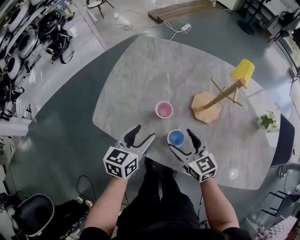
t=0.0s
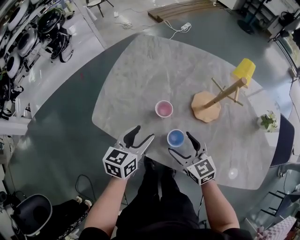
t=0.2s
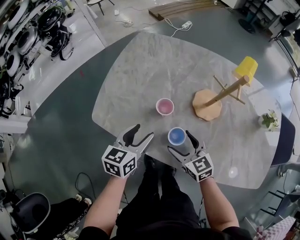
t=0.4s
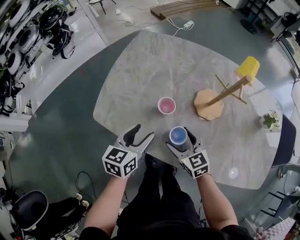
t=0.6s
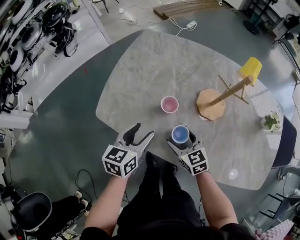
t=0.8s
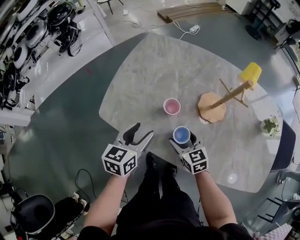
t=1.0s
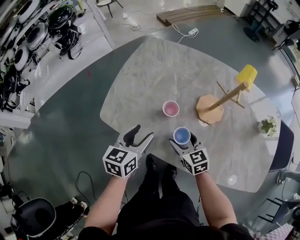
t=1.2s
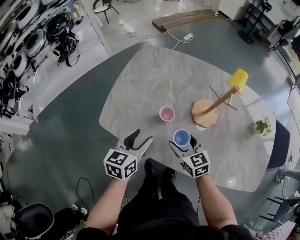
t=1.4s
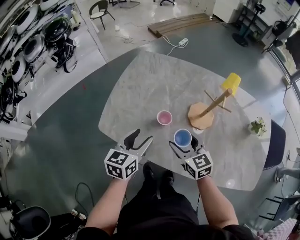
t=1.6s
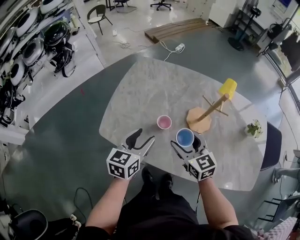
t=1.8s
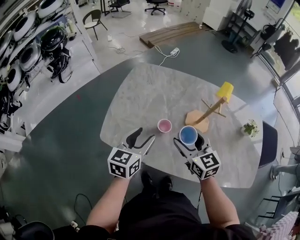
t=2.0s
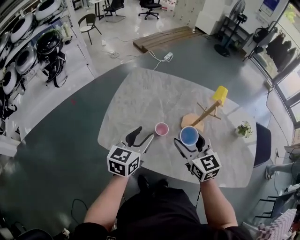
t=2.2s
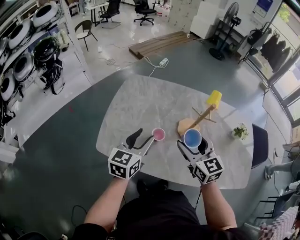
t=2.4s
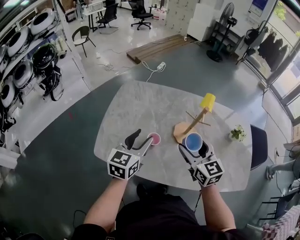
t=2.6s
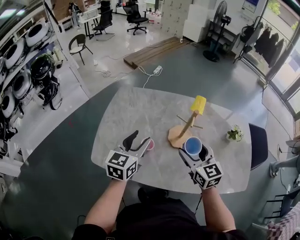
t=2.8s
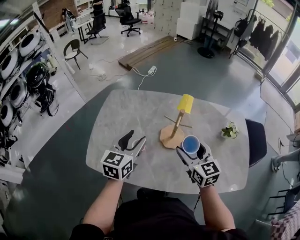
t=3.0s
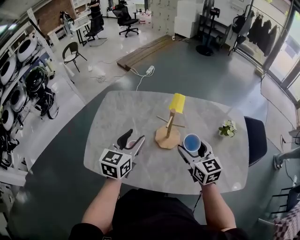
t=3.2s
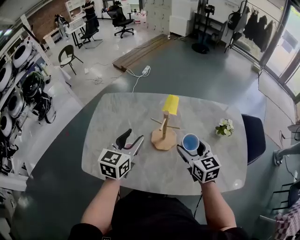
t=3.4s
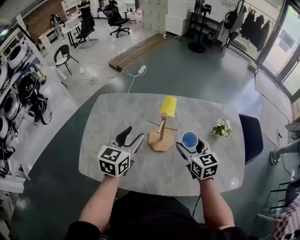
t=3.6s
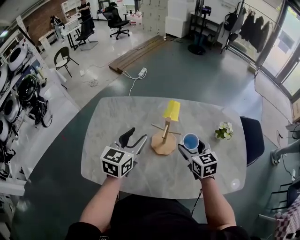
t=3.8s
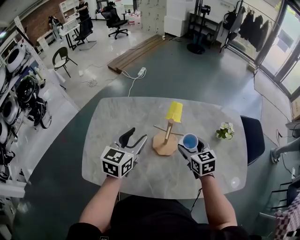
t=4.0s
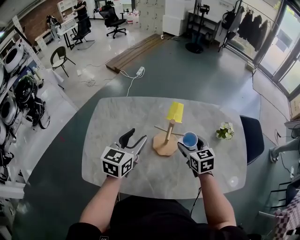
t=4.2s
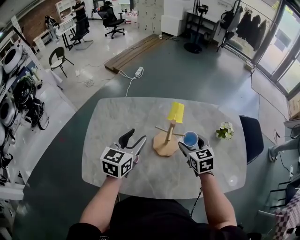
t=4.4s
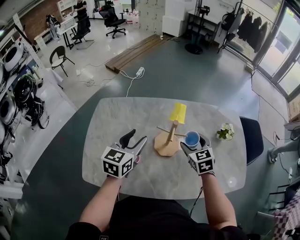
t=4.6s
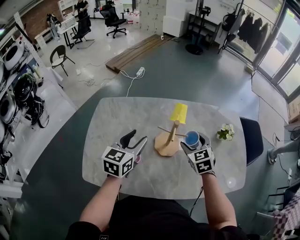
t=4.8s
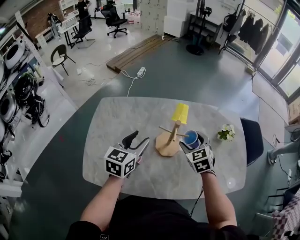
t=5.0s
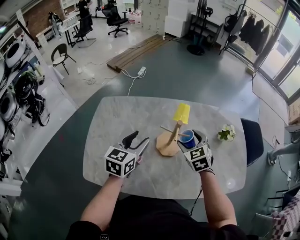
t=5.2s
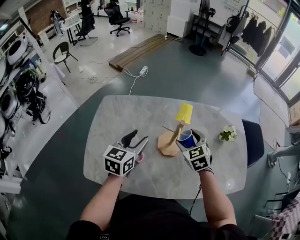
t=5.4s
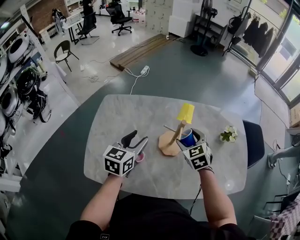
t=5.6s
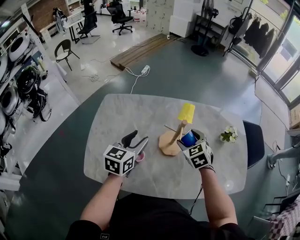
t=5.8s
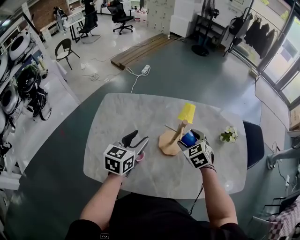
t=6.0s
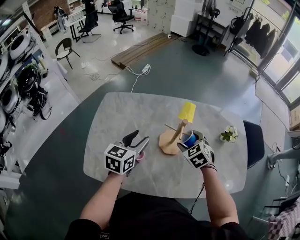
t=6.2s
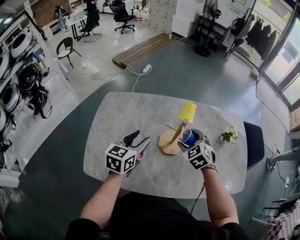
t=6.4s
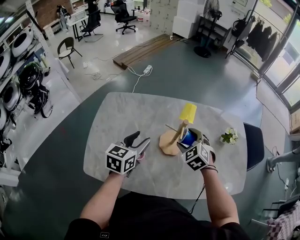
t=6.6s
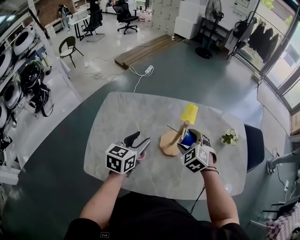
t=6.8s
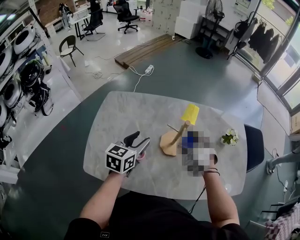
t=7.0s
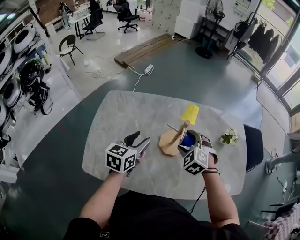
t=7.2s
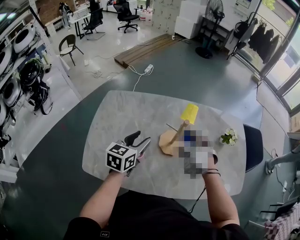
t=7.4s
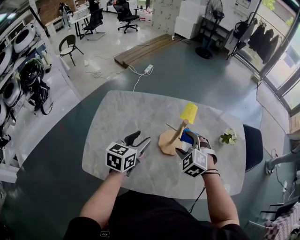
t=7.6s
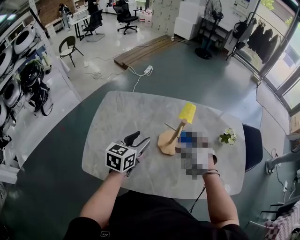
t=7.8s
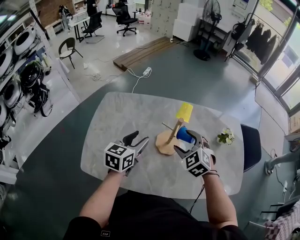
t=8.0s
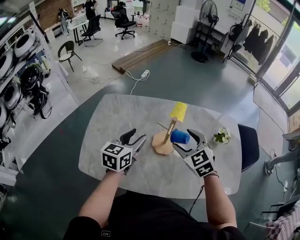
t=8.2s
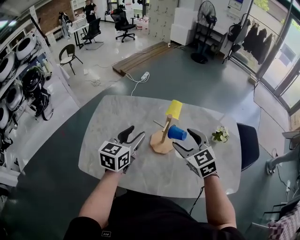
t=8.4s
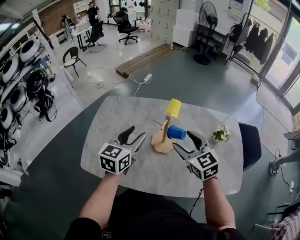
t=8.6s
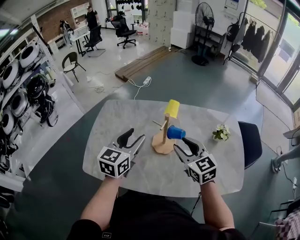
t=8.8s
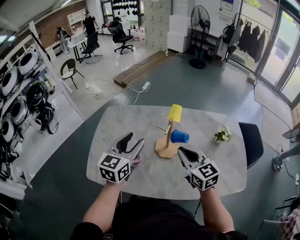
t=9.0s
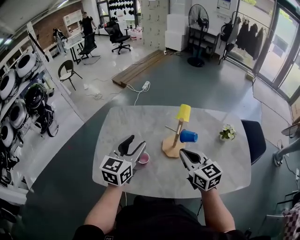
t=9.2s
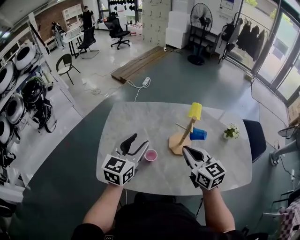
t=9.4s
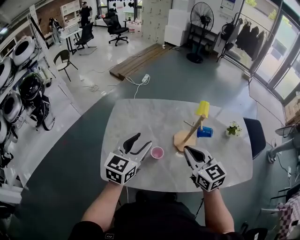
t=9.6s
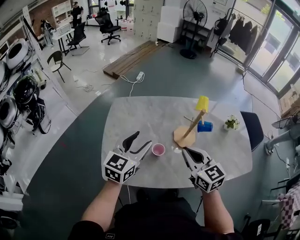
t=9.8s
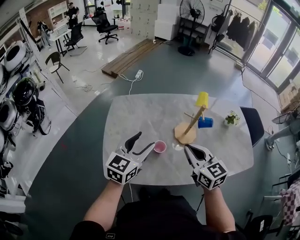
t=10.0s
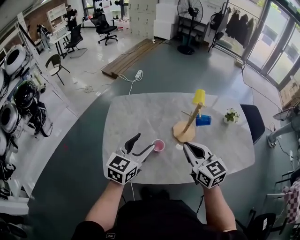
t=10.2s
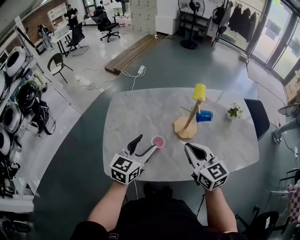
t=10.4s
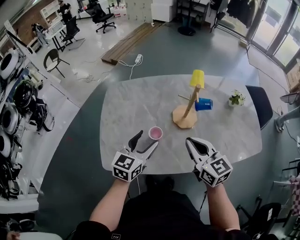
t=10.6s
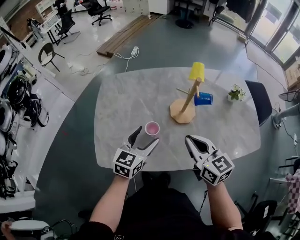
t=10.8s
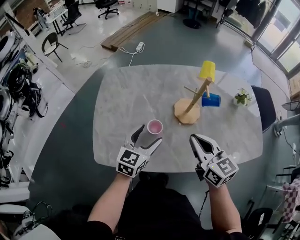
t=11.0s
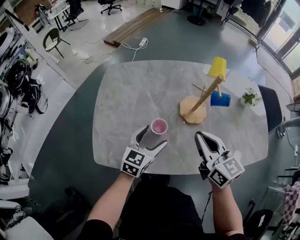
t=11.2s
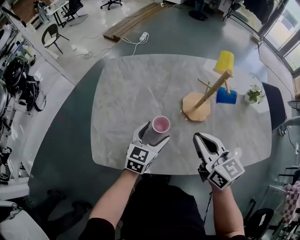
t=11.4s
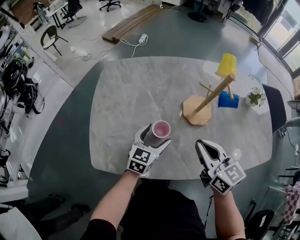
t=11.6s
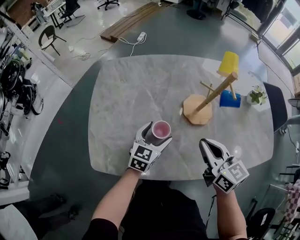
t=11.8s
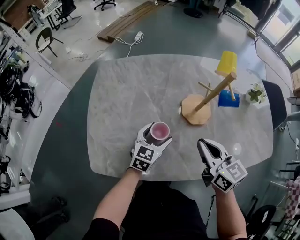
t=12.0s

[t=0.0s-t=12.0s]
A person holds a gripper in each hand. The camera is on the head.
t=0.0s to t=1.6s: The left gripper is displaced upward by some 5 cm, while the right gripper ends up about 5 cm from where it was.
t=1.6s to t=3.0s: The left gripper travels upward, forward and to the right by approximately 15 cm. The right gripper heads to the right and upward, covering roughly 20 cm, and changes its angle by approximately 20 degrees.
t=3.0s to t=4.4s: The right gripper moves forward, downward and to the right, approximately 10 cm, and swivels about 20 degrees; the left gripper moves forward, roughly 5 cm.
t=4.4s to t=6.0s: The right gripper is displaced to the left by approximately 5 cm, and rotates some 30 degrees.
t=6.0s to t=7.6s: The right gripper moves some 5 cm, and turns by about 30 degrees.
t=7.6s to t=9.0s: The right gripper travels upward and backward by approximately 10 cm, points its fingers approximately 30 degrees further upward, and closes, while the left gripper shifts about 10 cm upward.
t=9.0s to t=10.4s: The right gripper goes about 15 cm to the left and backward; the left gripper shifts approximately 10 cm to the left and downward.
t=10.4s to t=12.0s: The left gripper travels downward by roughly 25 cm. The right gripper travels downward by about 15 cm.

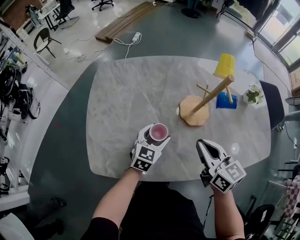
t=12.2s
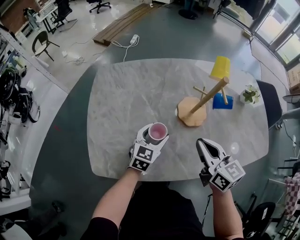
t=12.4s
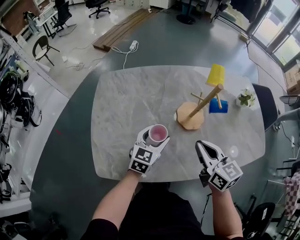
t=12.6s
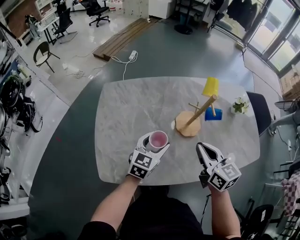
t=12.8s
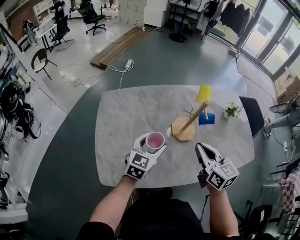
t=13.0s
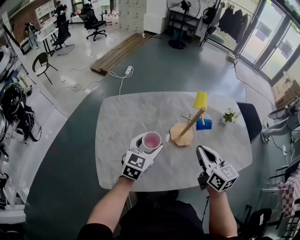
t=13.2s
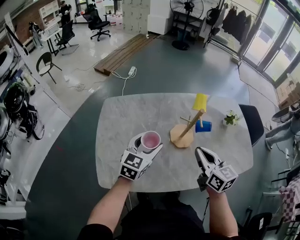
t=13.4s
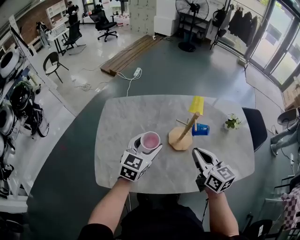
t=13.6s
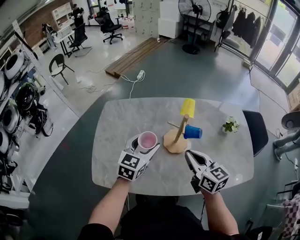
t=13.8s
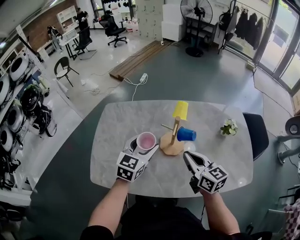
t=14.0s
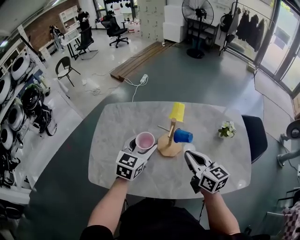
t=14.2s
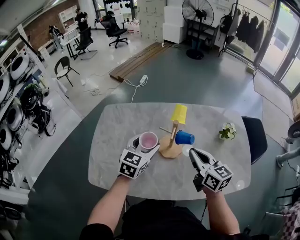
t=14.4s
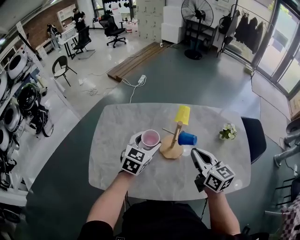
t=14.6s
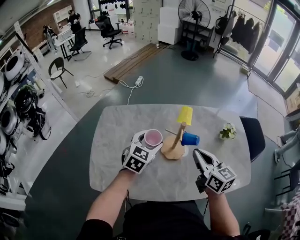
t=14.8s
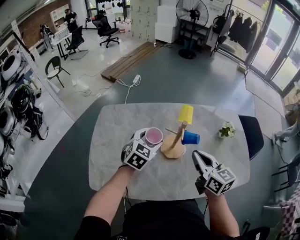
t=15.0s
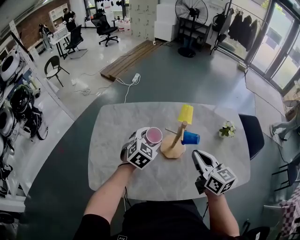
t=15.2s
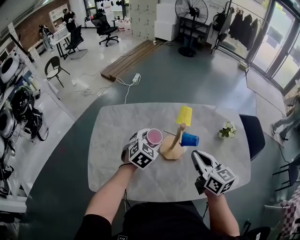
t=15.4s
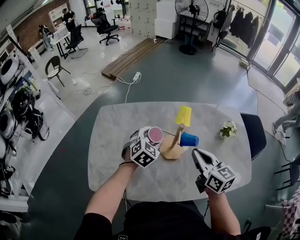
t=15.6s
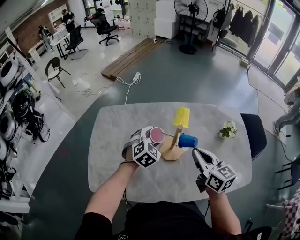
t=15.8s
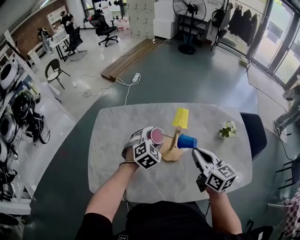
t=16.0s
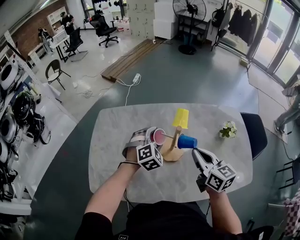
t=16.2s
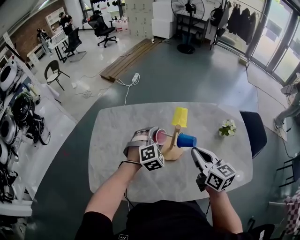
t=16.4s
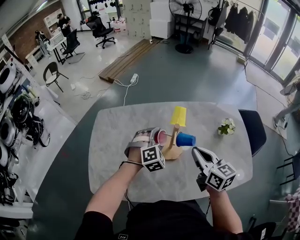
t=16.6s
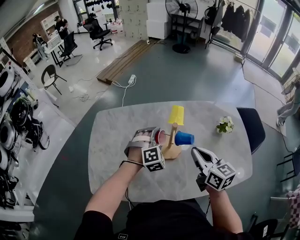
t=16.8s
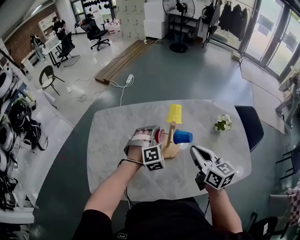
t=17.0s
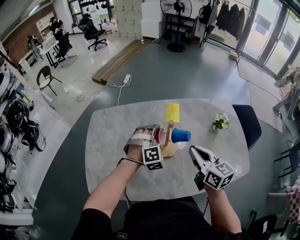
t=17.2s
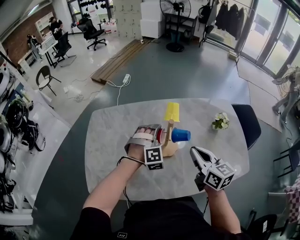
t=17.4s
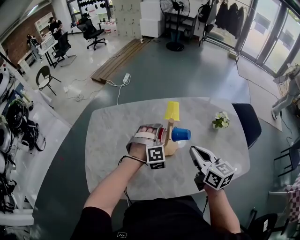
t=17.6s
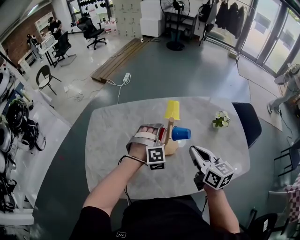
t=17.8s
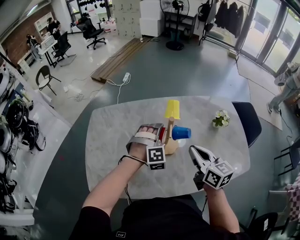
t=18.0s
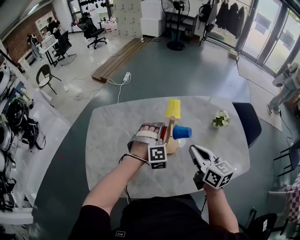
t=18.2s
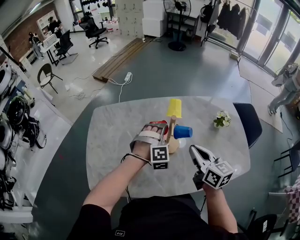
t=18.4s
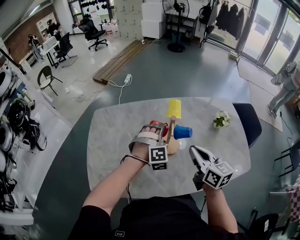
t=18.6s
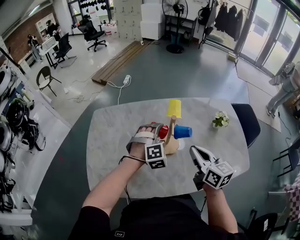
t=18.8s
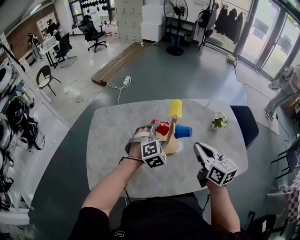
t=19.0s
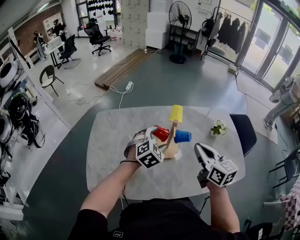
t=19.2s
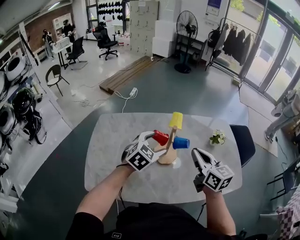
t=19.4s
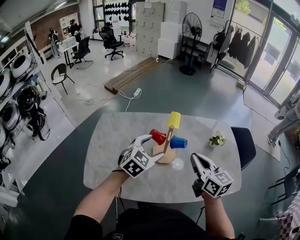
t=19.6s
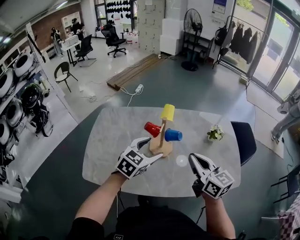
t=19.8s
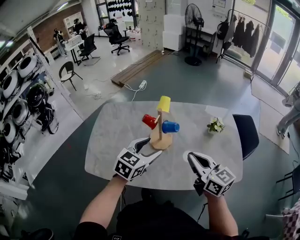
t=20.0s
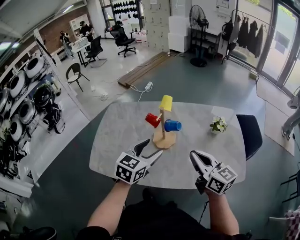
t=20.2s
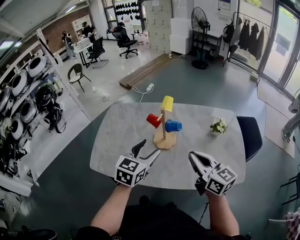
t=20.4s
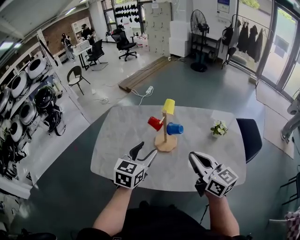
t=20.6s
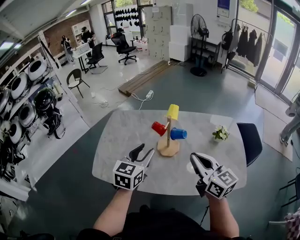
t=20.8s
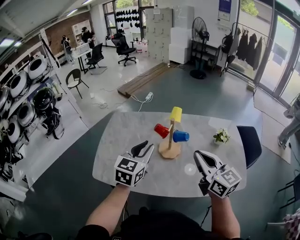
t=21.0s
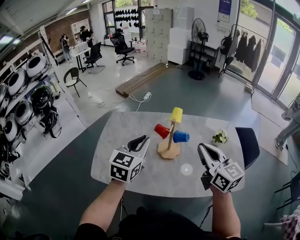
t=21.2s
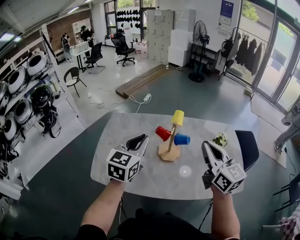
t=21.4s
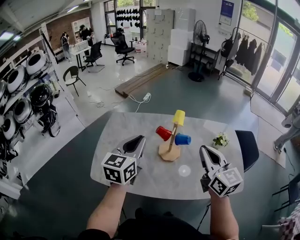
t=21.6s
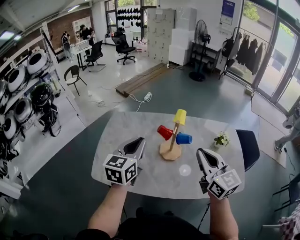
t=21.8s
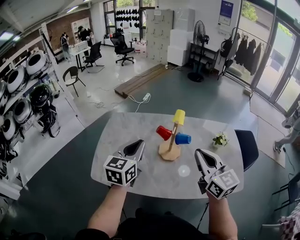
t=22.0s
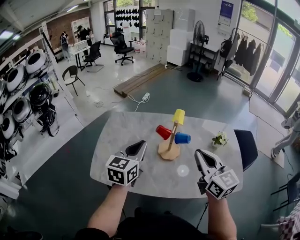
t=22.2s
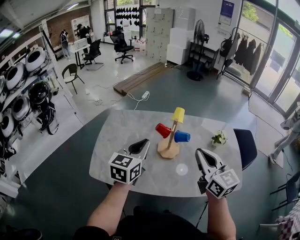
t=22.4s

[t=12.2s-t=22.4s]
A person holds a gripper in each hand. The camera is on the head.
t=12.2s to t=13.6s: The right gripper heads upward, covering some 10 cm. The left gripper is displaced upward by about 20 cm.
t=13.6s to t=15.2s: The left gripper travels forward and to the right by some 10 cm, and swivels about 20 degrees; the right gripper is displaced to the right by some 5 cm.
t=15.2s to t=16.6s: The left gripper travels to the right by about 5 cm, and swivels about 40 degrees.
t=16.6s to t=18.0s: The left gripper changes its angle by approximately 20 degrees.
t=18.0s to t=19.4s: The right gripper shifts approximately 5 cm upward. The left gripper moves upward and backward, roughly 10 cm, and rotates around the line of its fingers by approximately 50 degrees, counterclockwise from behind.
t=19.4s to t=21.0s: The grippers both shift backward and upward by approximately 10 cm. The left gripper changes its angle by roughly 30 degrees, and closes.

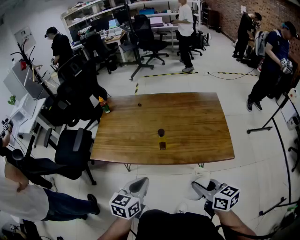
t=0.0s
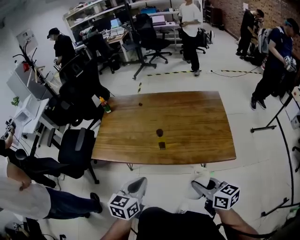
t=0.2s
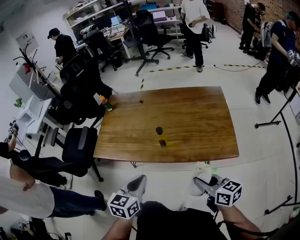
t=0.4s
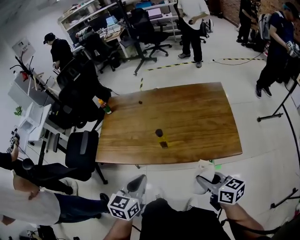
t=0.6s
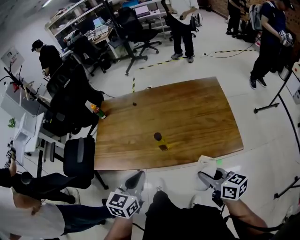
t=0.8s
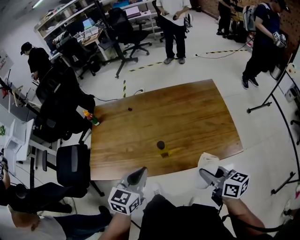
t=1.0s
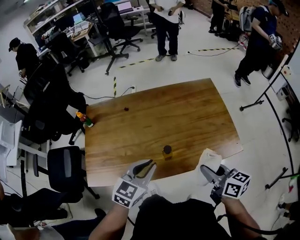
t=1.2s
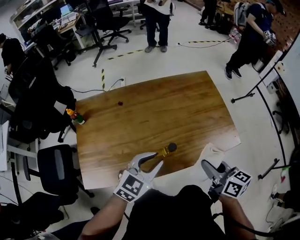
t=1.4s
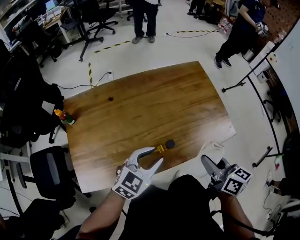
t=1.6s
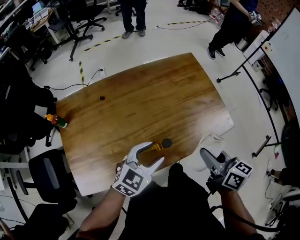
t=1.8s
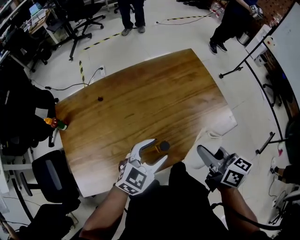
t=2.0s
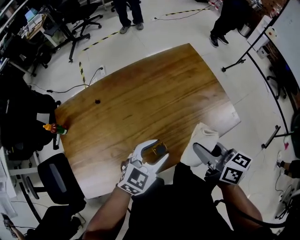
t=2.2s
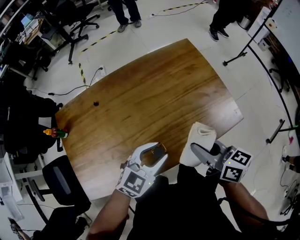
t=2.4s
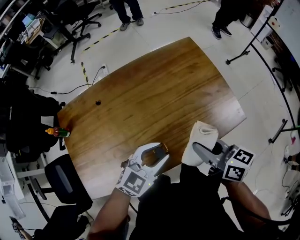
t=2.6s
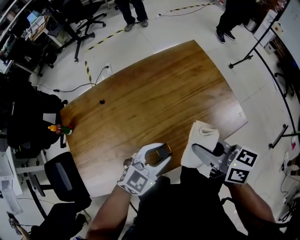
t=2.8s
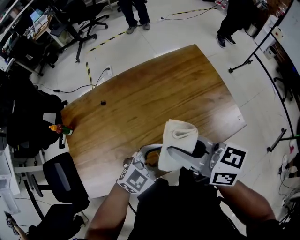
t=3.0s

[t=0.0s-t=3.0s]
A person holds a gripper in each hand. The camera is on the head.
t=0.0s to t=1.6s: The left gripper shifts by approximately 20 cm, swivels some 50 degrees, and opens up; the right gripper changes place by approximately 15 cm, and changes its angle by some 30 degrees.
t=1.6s to t=3.0s: The right gripper heads to the left, forward and upward, covering about 15 cm, and changes its angle by about 30 degrees; the left gripper goes roughly 5 cm to the right, and opens, then closes again.
